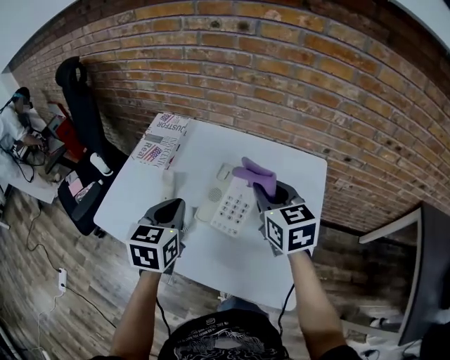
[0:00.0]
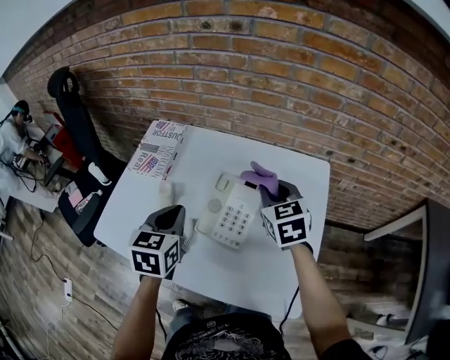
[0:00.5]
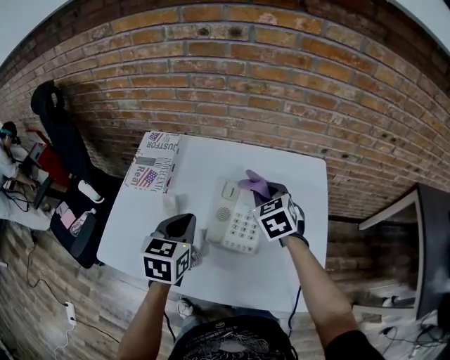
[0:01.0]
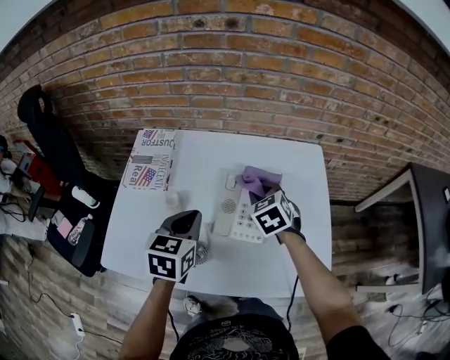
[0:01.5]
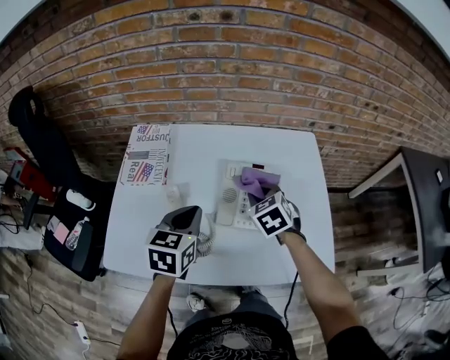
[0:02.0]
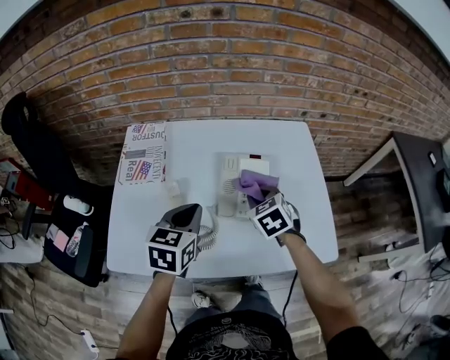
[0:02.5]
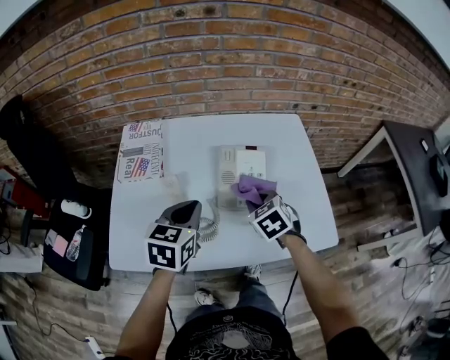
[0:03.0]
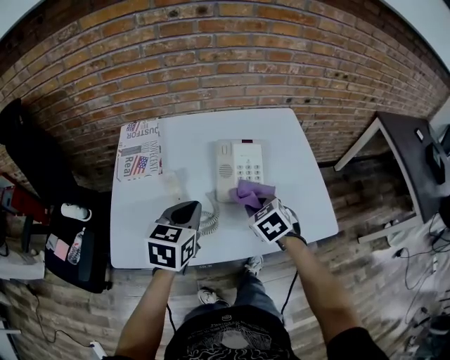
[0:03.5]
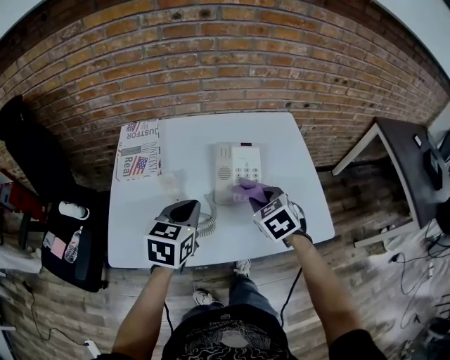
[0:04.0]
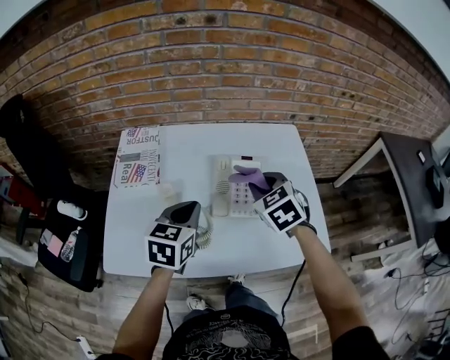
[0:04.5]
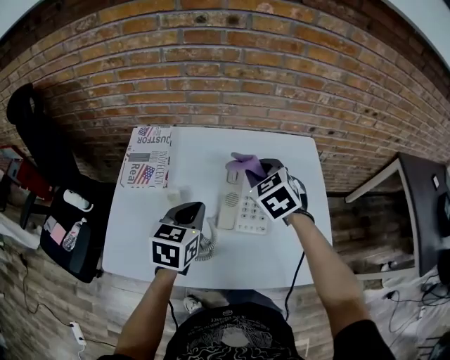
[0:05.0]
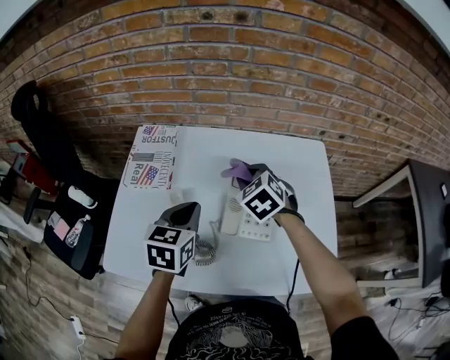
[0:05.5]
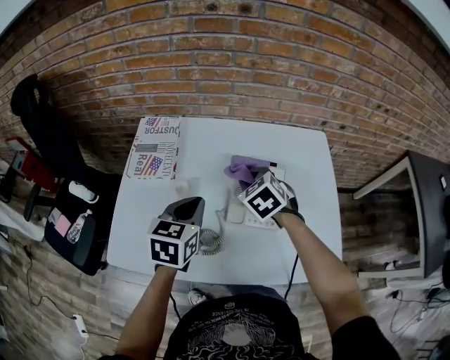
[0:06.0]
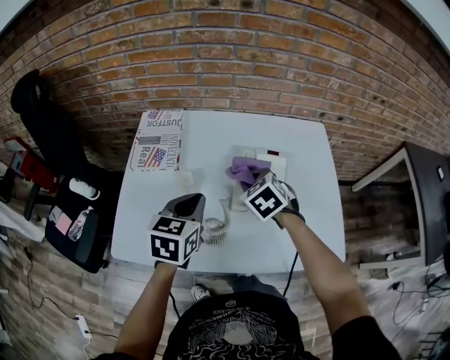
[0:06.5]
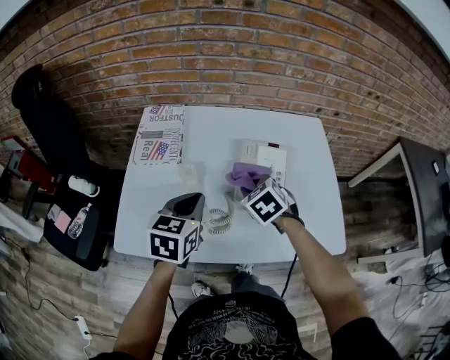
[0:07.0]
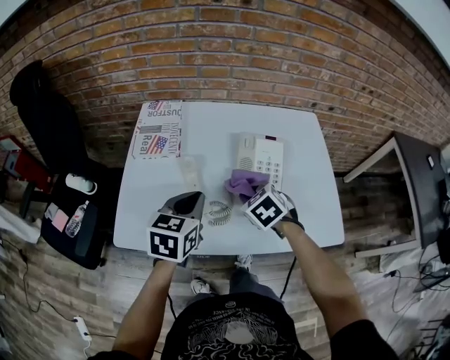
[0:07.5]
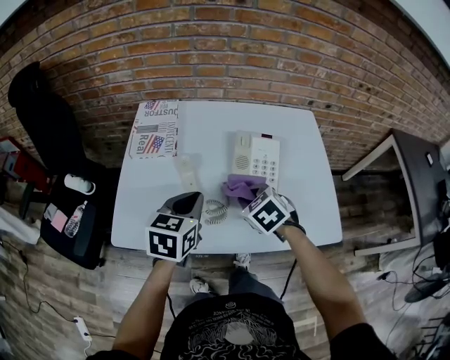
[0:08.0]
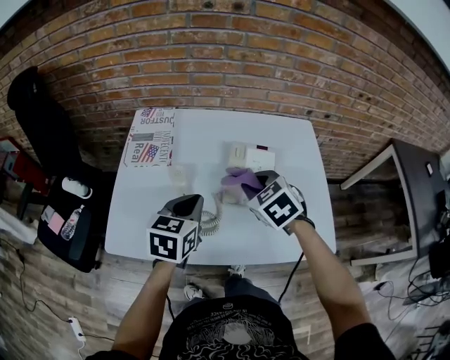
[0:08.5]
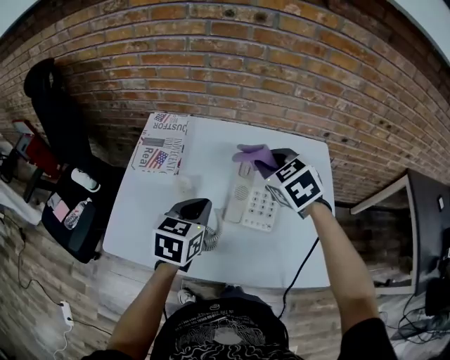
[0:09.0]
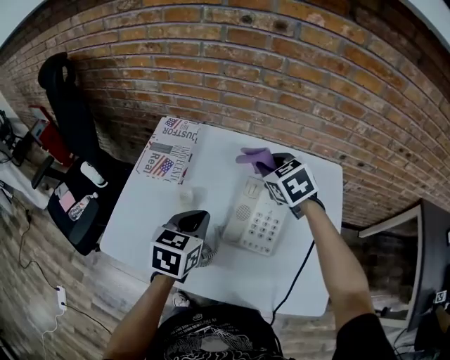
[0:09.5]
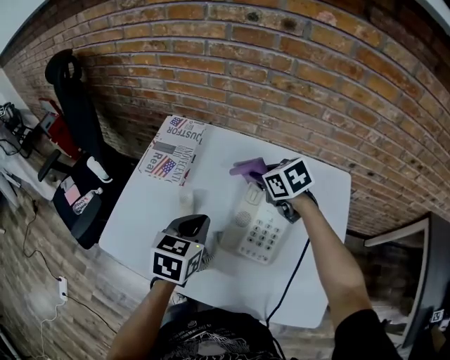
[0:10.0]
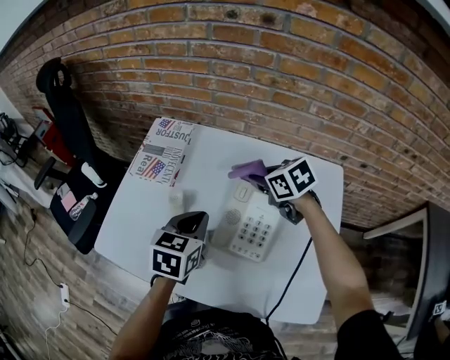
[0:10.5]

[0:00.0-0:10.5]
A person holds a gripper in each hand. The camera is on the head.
0.0 to 2.0 s: The right gripper goes roughly 15 cm downward and to the left, and turns by roughly 30 degrees, while the left gripper moves roughly 5 cm, and rotates approximately 20 degrees.
2.0 to 4.0 s: The left gripper moves backward, about 5 cm; the right gripper heads backward, covering approximately 10 cm.
4.0 to 6.5 s: The right gripper travels forward and to the left by about 10 cm.
6.5 to 8.5 s: The right gripper goes about 10 cm backward and upward.
8.5 to 10.5 s: The right gripper travels upward and back again, about 5 cm each way, and rotates approximately 30 degrees. Meanwhile the left gripper shifts by some 10 cm.

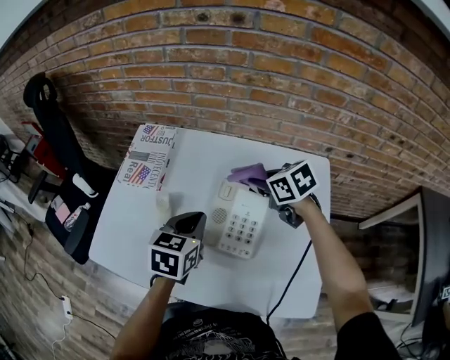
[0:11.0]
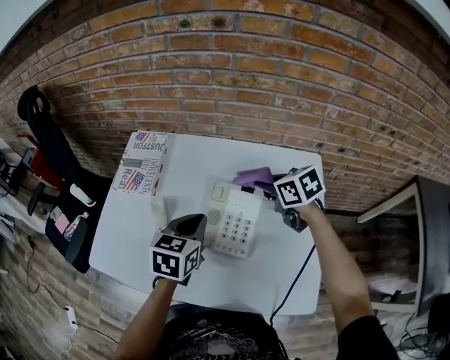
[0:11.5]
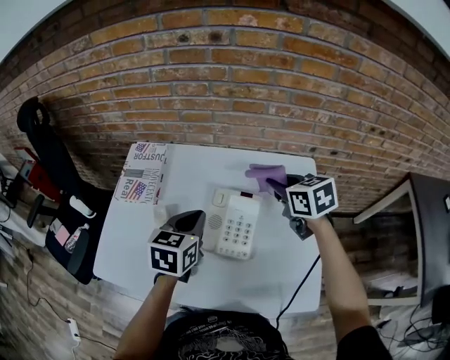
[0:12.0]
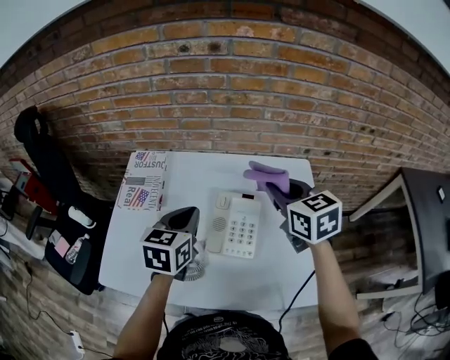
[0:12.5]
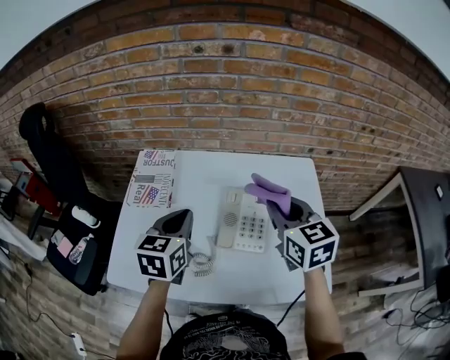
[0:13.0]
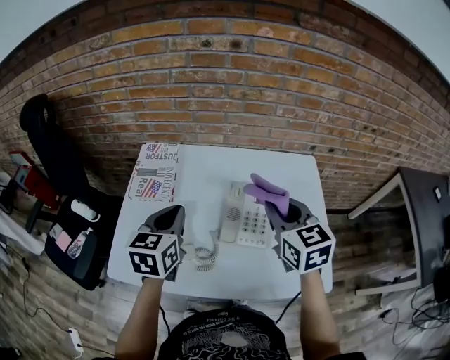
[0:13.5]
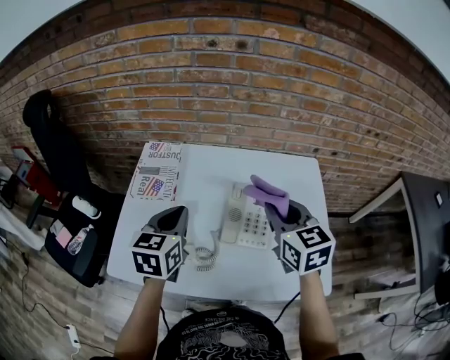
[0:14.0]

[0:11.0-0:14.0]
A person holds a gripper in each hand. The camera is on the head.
11.0 to 12.5 s: The left gripper heads upward, covering approximately 5 cm, while the right gripper shifts about 15 cm upward and backward, and rotates some 30 degrees.
12.5 to 14.0 s: The left gripper travels to the left by approximately 10 cm. Meanwhile the right gripper moves backward and to the left, about 10 cm.

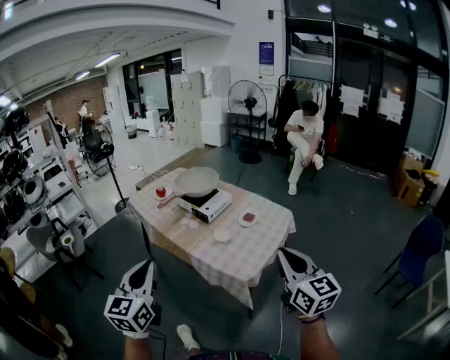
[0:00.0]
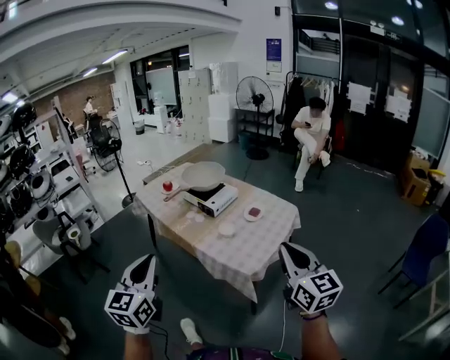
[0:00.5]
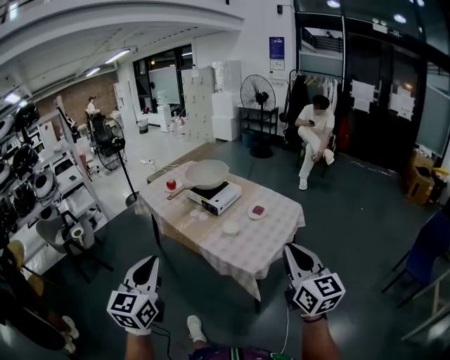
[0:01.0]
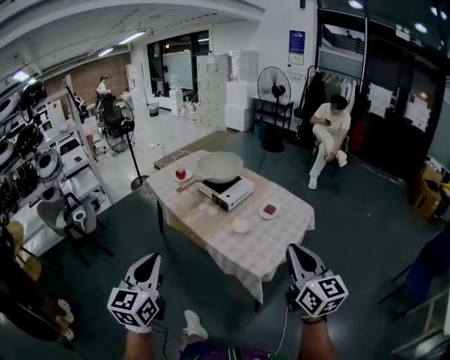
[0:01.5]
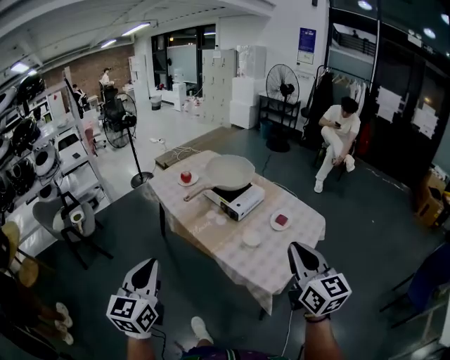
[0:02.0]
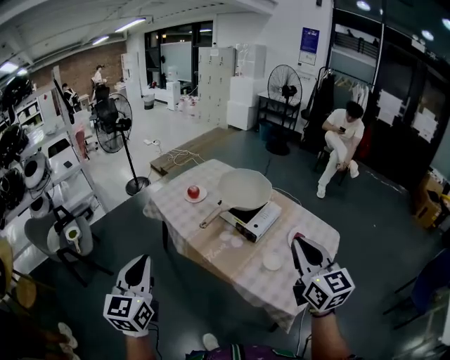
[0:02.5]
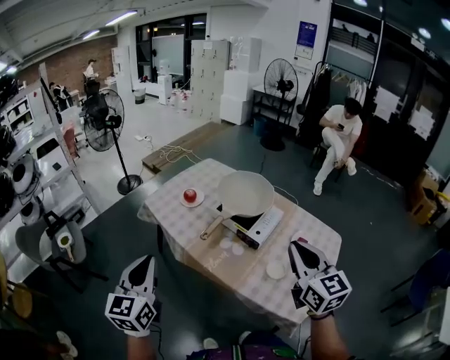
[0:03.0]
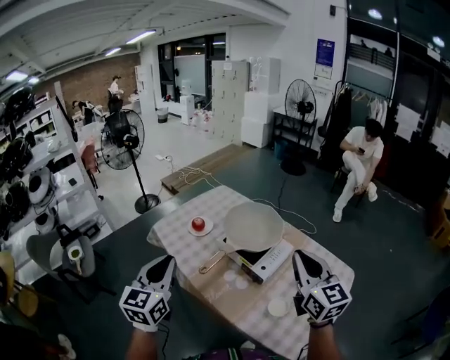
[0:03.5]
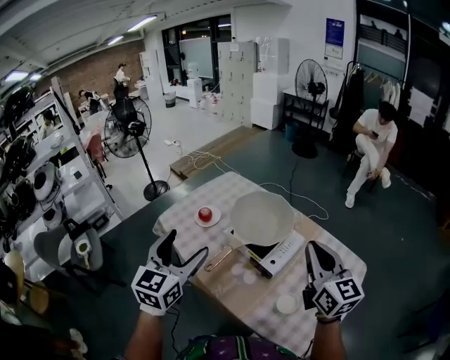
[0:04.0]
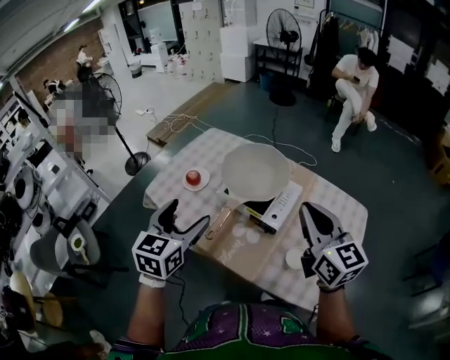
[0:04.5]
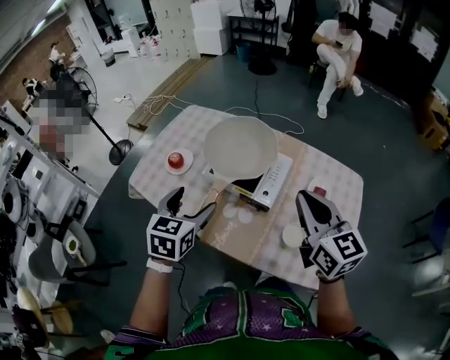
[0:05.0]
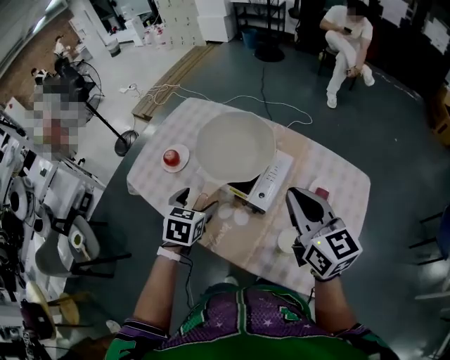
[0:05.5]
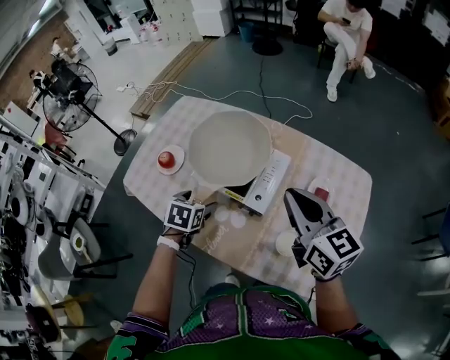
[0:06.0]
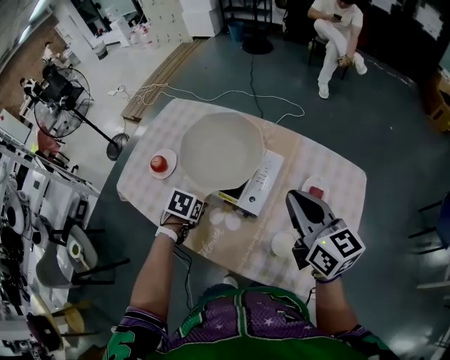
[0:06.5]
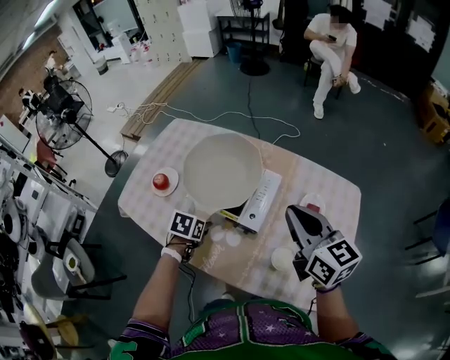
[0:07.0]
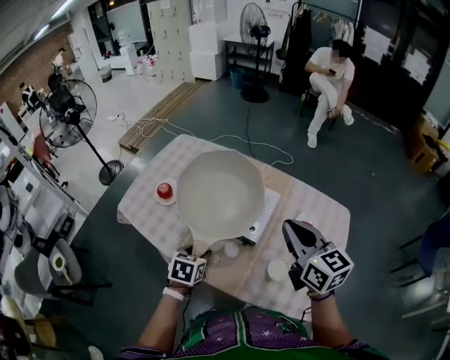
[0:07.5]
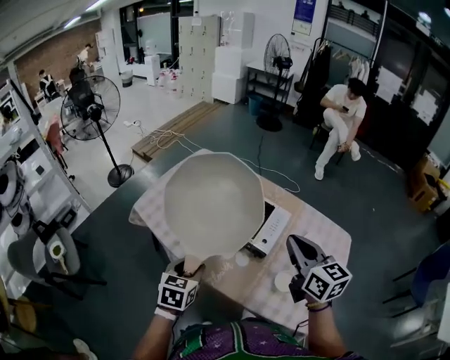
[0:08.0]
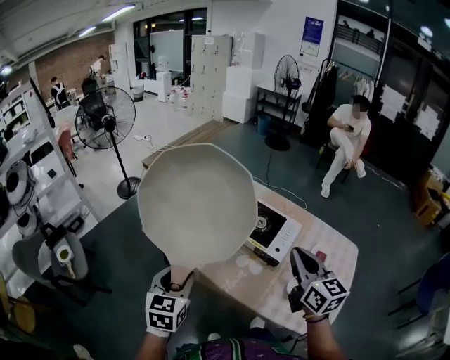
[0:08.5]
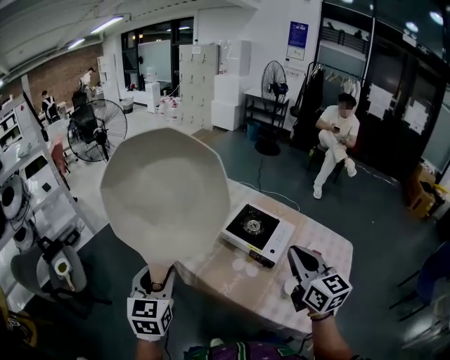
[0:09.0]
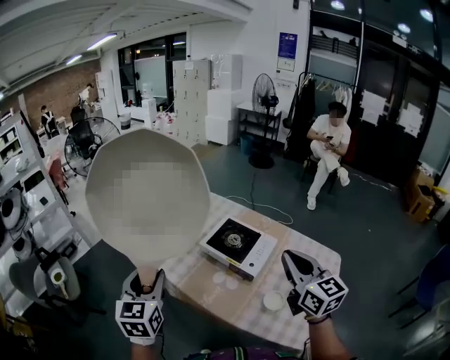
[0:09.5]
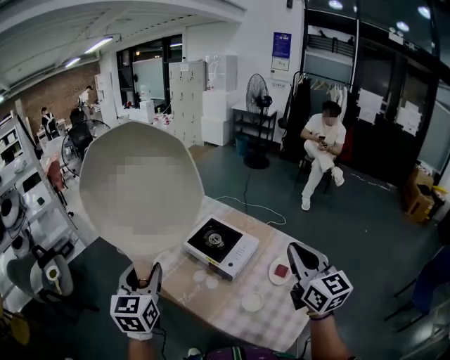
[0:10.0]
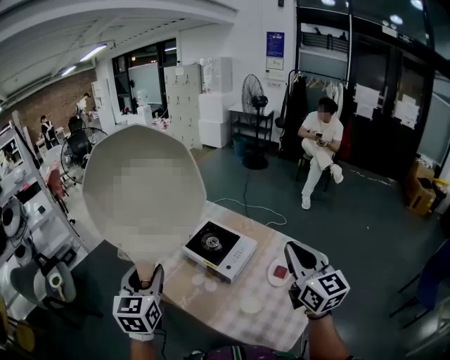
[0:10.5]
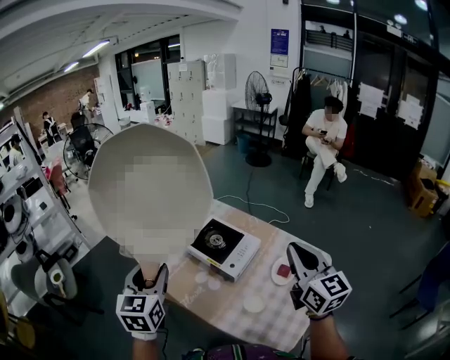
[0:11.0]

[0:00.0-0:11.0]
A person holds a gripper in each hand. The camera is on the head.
0.0 to 2.0 s: Both grippers travel together forward and to the left, approximately 20 cm.
2.0 to 3.5 s: The pair of grippers is taken forward, approximately 40 cm.
3.5 to 5.5 s: The left gripper goes approximately 35 cm downward, forward and to the right, tips its fingers downward by some 40 degrees, and opens. Meanwhile the right gripper heads forward and downward, covering approximately 20 cm.
5.5 to 7.5 s: The left gripper is displaced backward and downward by about 10 cm, and closes.
7.5 to 9.0 s: The right gripper heads to the left, backward and upward, covering approximately 20 cm; the left gripper heads to the left, upward and backward, covering roughly 35 cm, and tilts its fingers roughly 40 degrees upward.
9.0 to 11.0 s: The grippers both shift to the right by some 25 cm.

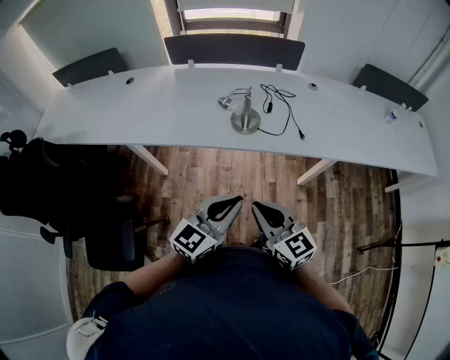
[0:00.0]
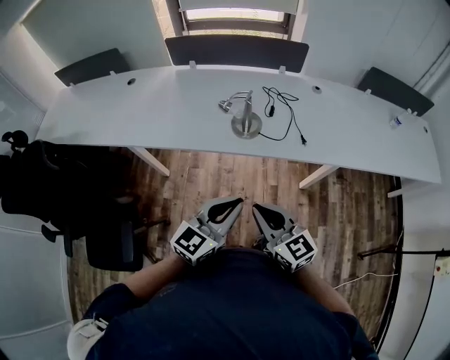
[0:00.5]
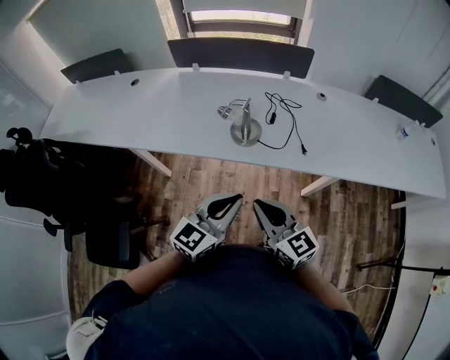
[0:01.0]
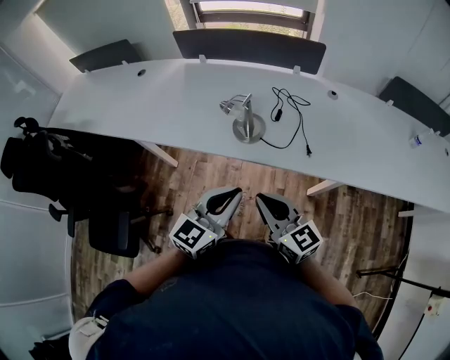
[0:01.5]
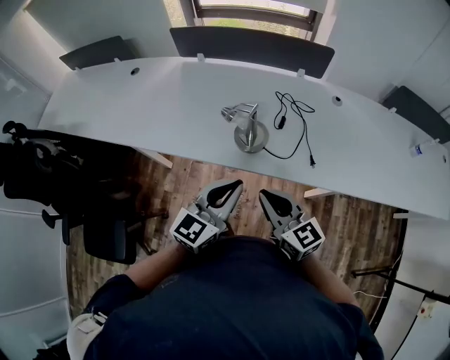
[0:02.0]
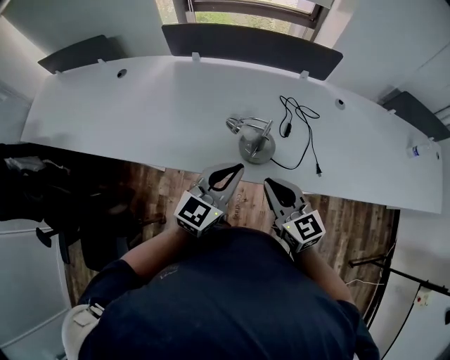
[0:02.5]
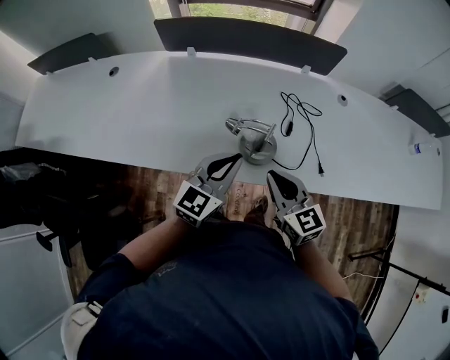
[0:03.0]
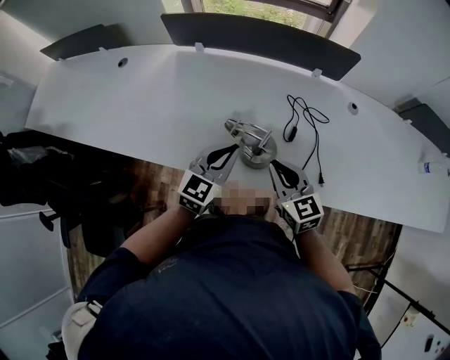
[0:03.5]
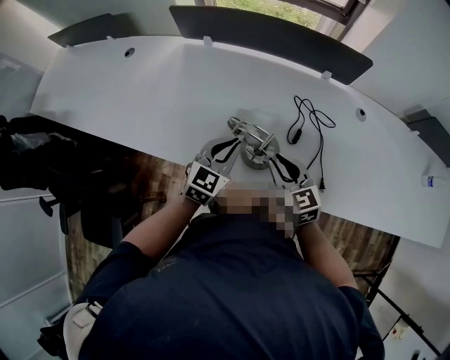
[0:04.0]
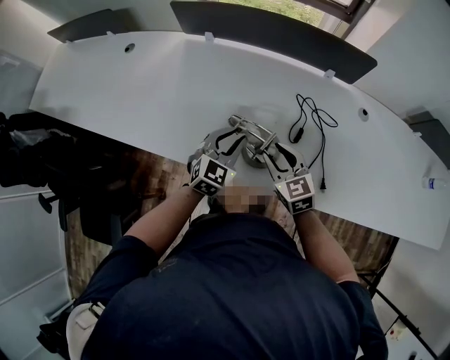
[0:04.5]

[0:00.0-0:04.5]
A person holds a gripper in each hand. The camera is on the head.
0.0 to 2.0 s: The grippers both shift forward by roughly 20 cm.
2.0 to 4.5 s: Both grippers move forward and downward, approximately 30 cm. The left gripper changes its angle by approximately 30 degrees; the right gripper rotates approximately 20 degrees, and opens its fingers.
